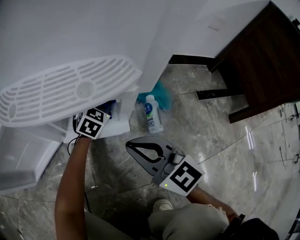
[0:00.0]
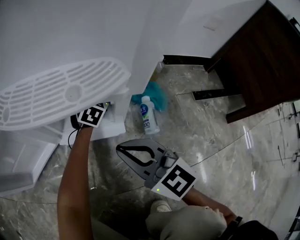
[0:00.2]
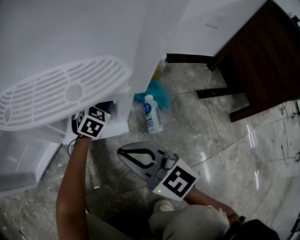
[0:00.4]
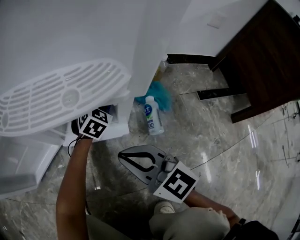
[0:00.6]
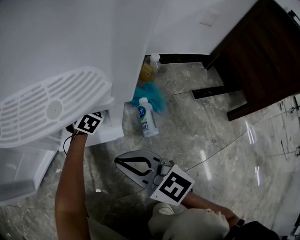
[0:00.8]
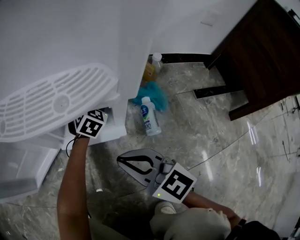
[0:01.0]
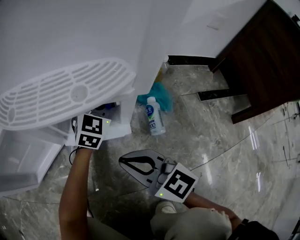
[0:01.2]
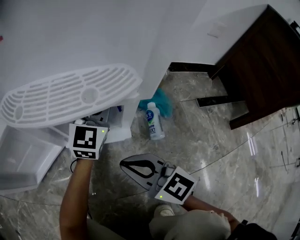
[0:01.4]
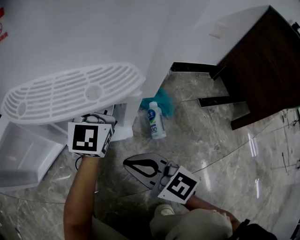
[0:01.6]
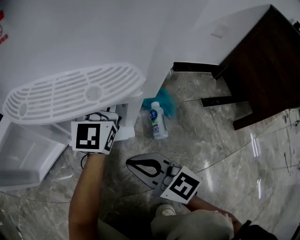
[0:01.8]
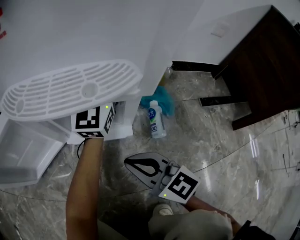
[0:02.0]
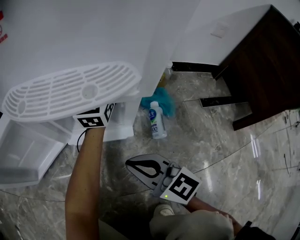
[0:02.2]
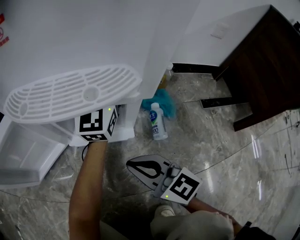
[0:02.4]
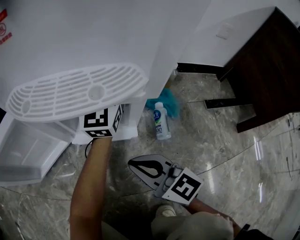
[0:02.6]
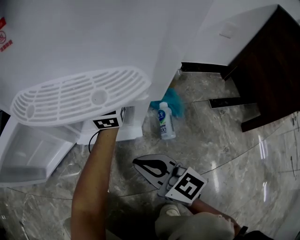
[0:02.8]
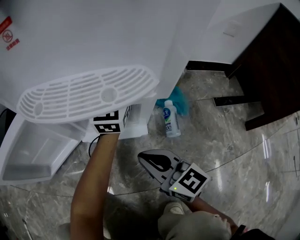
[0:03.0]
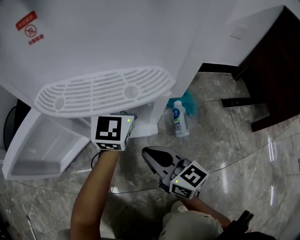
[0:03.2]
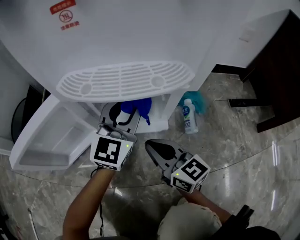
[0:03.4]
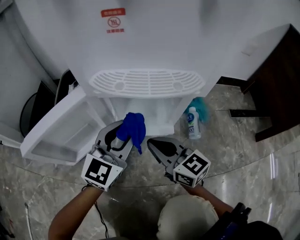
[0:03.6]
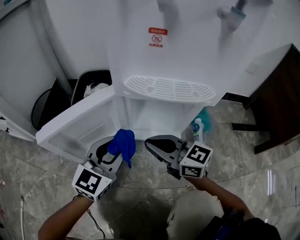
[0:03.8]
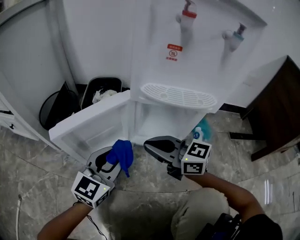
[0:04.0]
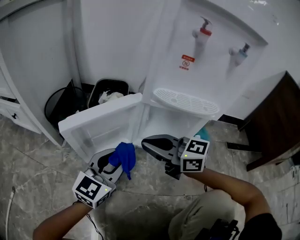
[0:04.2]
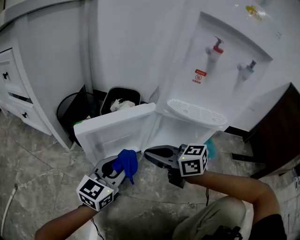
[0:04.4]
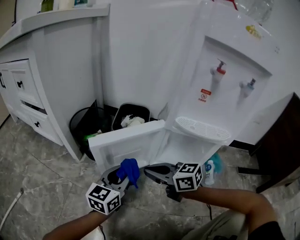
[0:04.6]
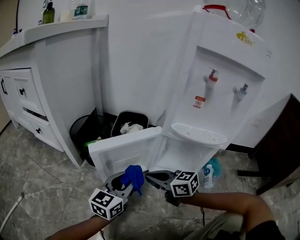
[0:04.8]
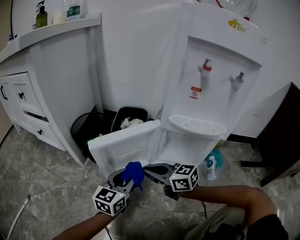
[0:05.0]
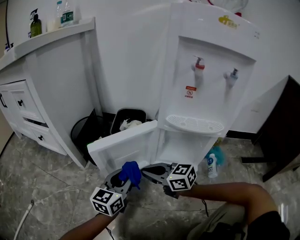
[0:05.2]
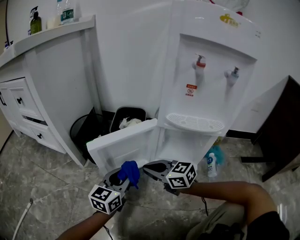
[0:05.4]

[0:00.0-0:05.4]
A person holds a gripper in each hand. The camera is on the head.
0:00.0 to 0:01.4: The left gripper travels upward by roughly 15 cm, and points its fingers approximately 30 degrees further upward.
0:01.4 to 0:02.8: The left gripper goes some 10 cm upward and forward.
0:02.8 to 0:04.0: The right gripper travels to the left and upward by approximately 20 cm, and rotates roughly 20 degrees. Meanwhile the left gripper heads to the left and backward, covering about 40 cm, and rotates roughly 20 degrees.
0:04.0 to 0:05.4: The grippers both shift to the left by about 10 cm.

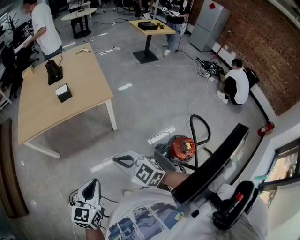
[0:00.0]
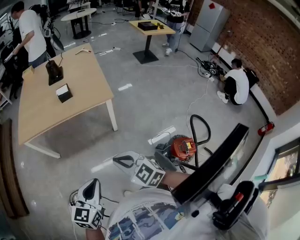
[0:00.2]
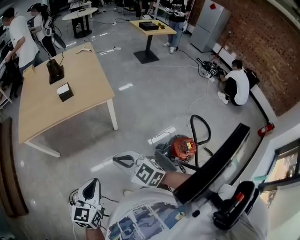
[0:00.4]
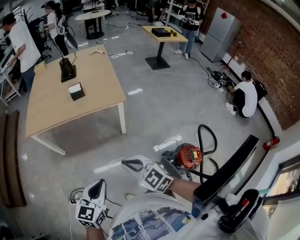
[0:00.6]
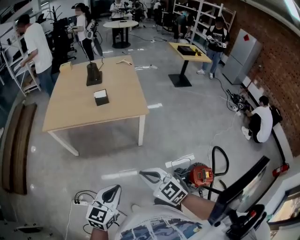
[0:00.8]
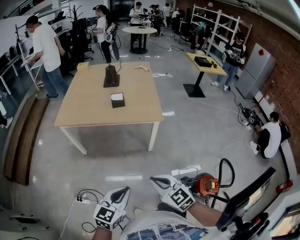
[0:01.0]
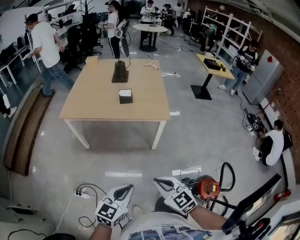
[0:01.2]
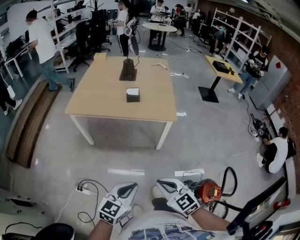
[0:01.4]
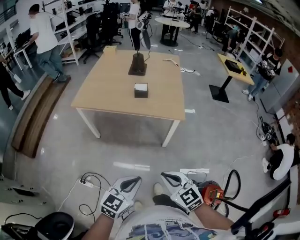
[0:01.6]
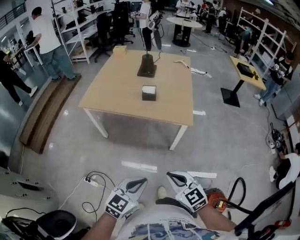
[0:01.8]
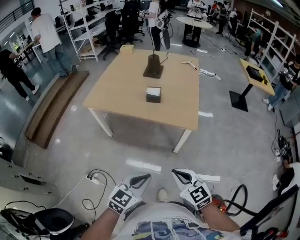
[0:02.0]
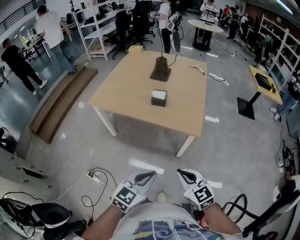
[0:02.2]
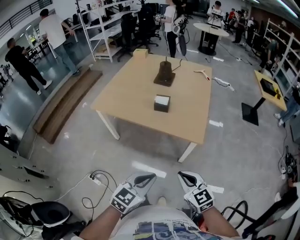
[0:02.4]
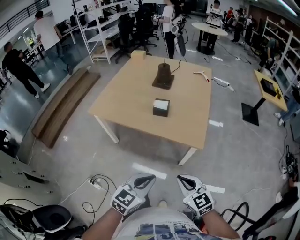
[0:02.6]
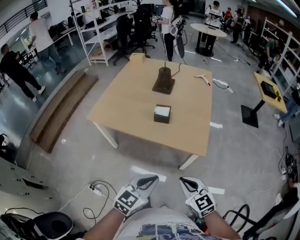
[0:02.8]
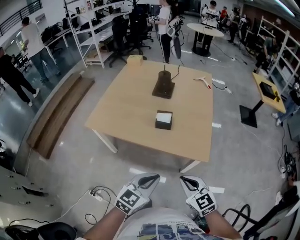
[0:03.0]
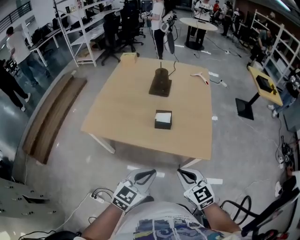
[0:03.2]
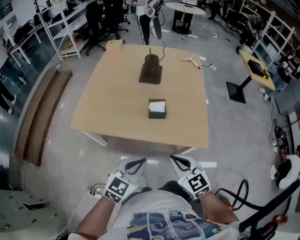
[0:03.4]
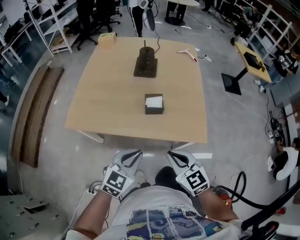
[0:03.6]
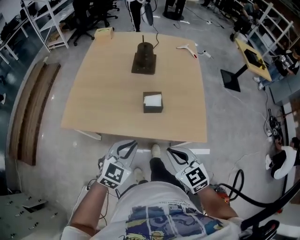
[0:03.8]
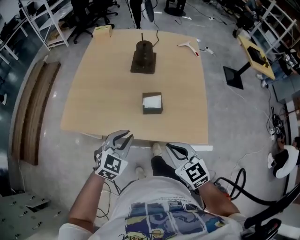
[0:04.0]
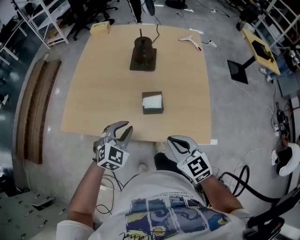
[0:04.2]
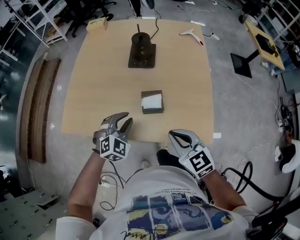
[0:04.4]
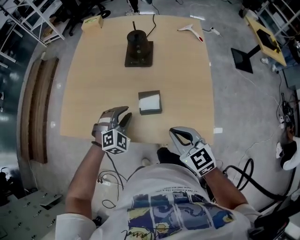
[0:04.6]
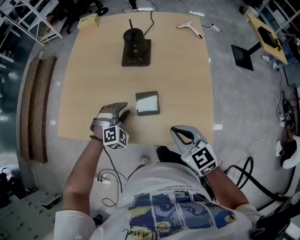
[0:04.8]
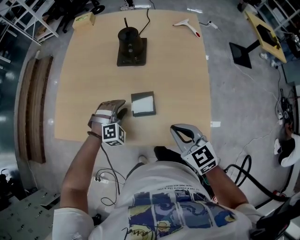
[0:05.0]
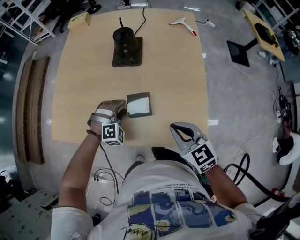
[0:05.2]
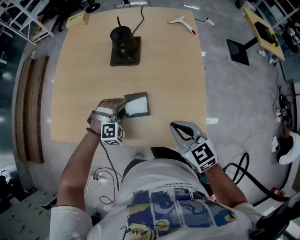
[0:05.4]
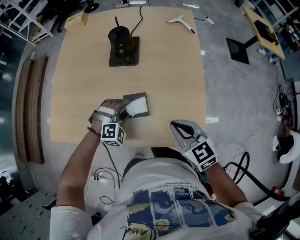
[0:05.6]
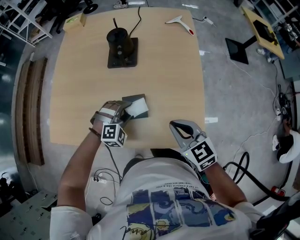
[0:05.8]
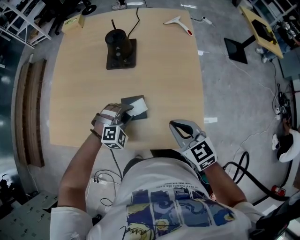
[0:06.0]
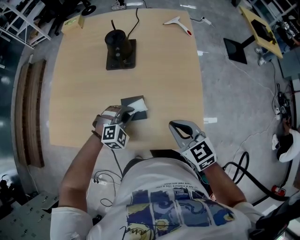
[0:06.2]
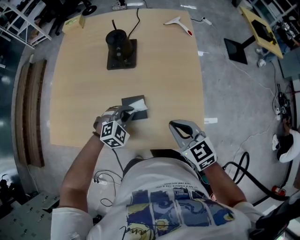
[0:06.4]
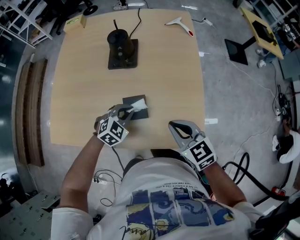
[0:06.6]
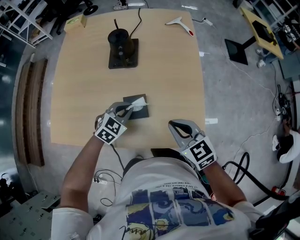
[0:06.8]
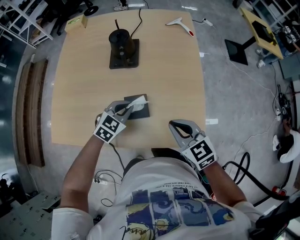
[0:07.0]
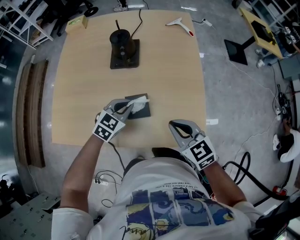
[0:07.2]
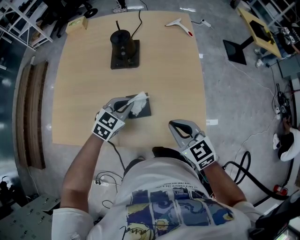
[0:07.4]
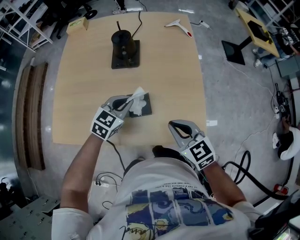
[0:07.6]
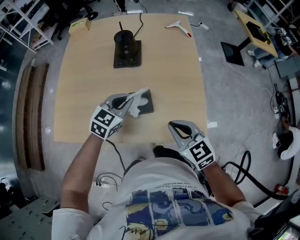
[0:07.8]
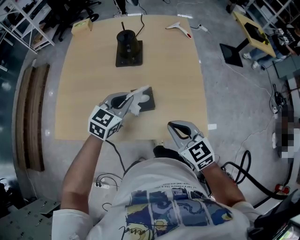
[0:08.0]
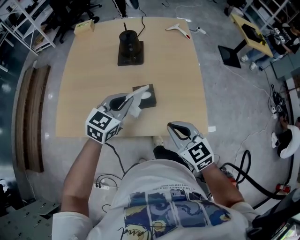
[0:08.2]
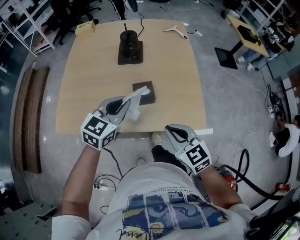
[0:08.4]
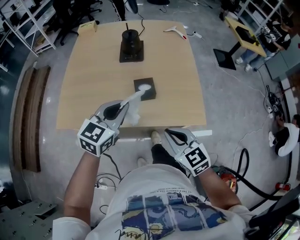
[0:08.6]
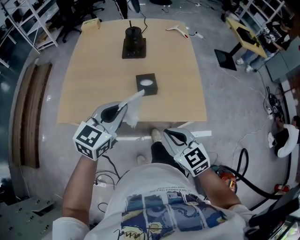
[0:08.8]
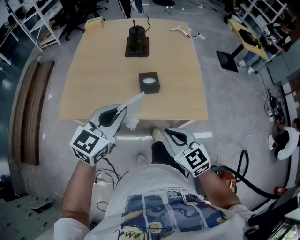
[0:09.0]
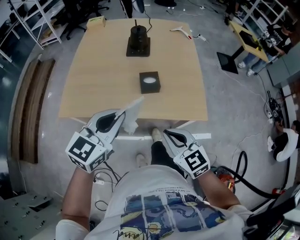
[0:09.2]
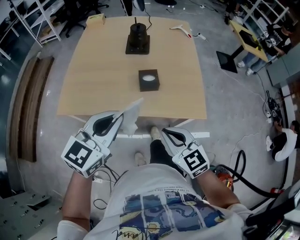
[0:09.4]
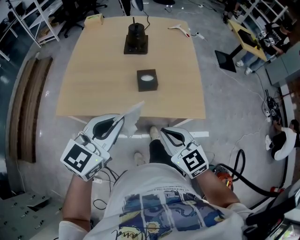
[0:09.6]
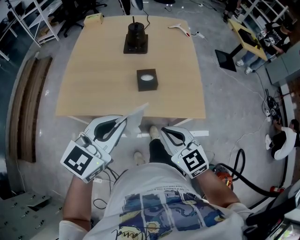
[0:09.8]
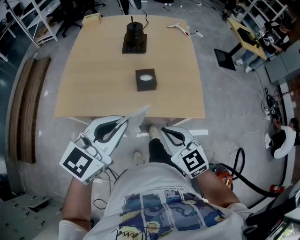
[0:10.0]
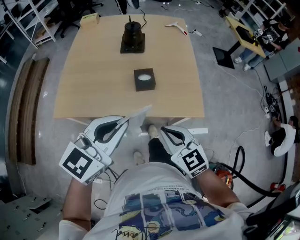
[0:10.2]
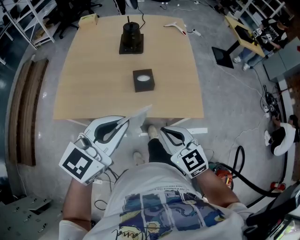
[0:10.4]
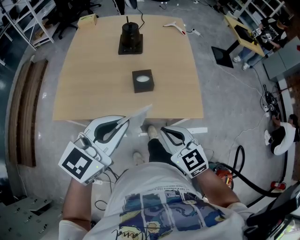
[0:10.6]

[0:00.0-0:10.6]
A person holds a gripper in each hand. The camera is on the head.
0:00.0 to 0:01.6: The grippers make only small movements.
0:01.6 to 0:03.0: The two grippers go some 25 cm forward.
0:03.0 to 0:04.6: Both grippers travel together forward, about 30 cm. The left gripper rolls clockwise, seen from behind, by some 50 degrees, and opens up.
0:04.6 to 0:06.0: The left gripper is displaced to the right and downward by some 10 cm, and turns by about 20 degrees; the right gripper heads to the right and forward, covering approximately 10 cm.
0:06.0 to 0:07.6: The left gripper moves upward, about 10 cm, rolls counterclockwise, seen from behind, by approximately 50 degrees, and closes up.
0:07.6 to 0:09.0: The left gripper goes about 30 cm backward and upward. The right gripper heads backward, covering approximately 20 cm.
0:09.0 to 0:10.6: The left gripper is displaced upward by about 5 cm.

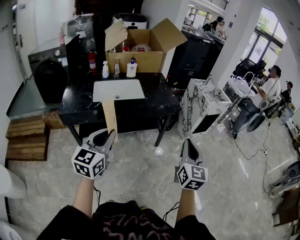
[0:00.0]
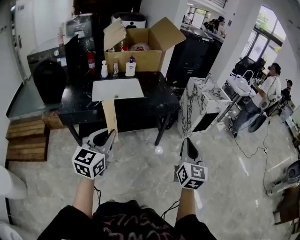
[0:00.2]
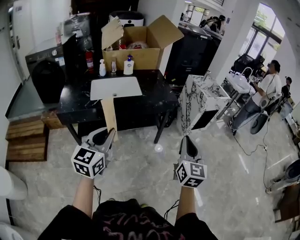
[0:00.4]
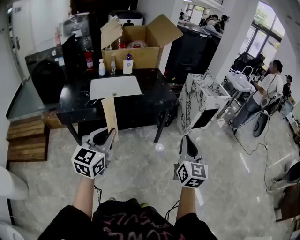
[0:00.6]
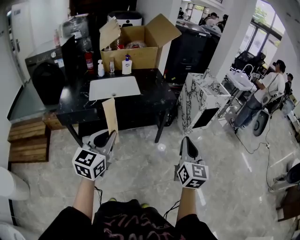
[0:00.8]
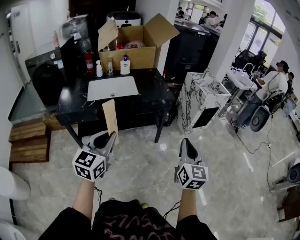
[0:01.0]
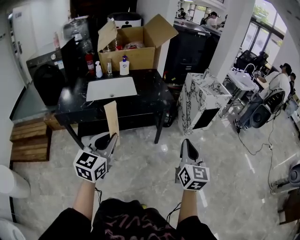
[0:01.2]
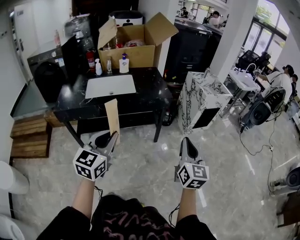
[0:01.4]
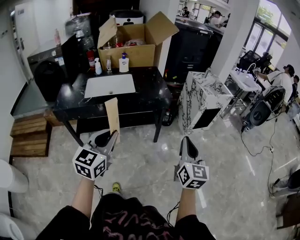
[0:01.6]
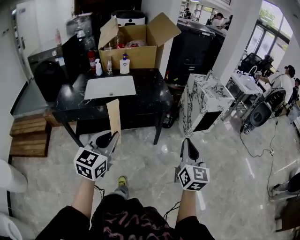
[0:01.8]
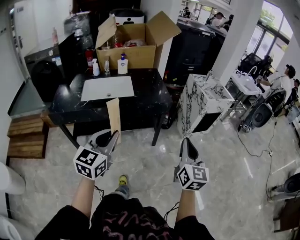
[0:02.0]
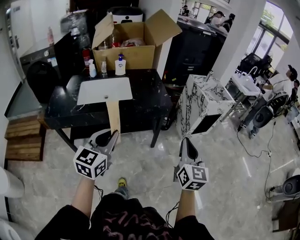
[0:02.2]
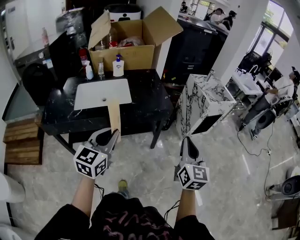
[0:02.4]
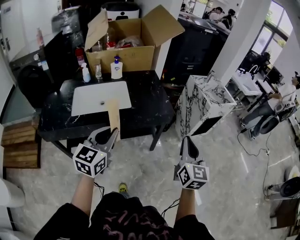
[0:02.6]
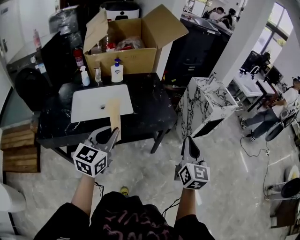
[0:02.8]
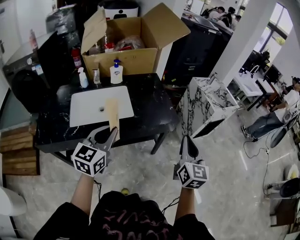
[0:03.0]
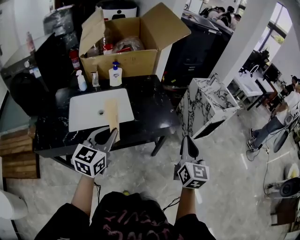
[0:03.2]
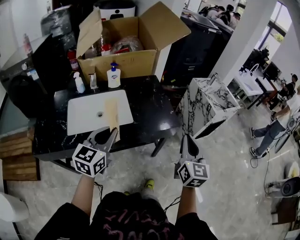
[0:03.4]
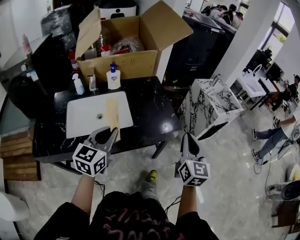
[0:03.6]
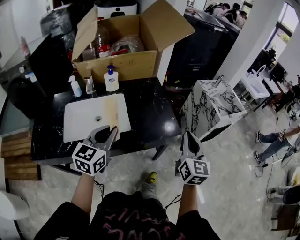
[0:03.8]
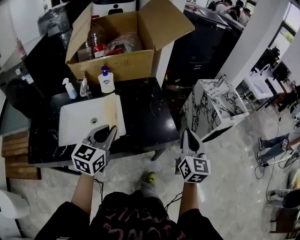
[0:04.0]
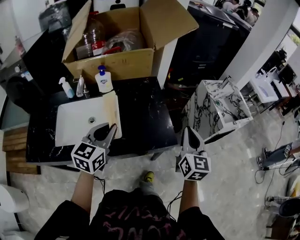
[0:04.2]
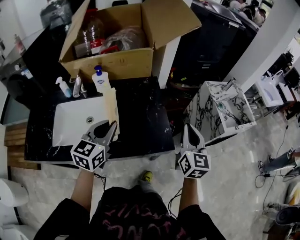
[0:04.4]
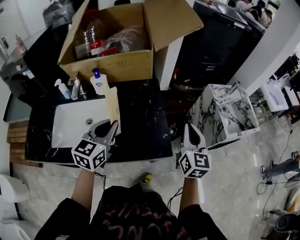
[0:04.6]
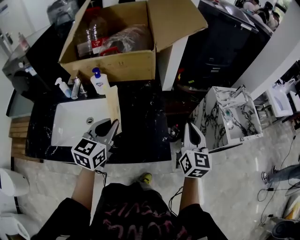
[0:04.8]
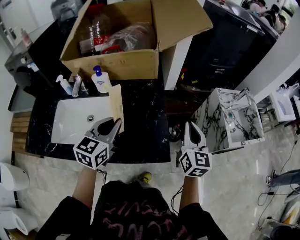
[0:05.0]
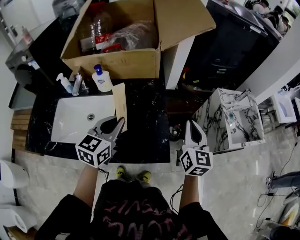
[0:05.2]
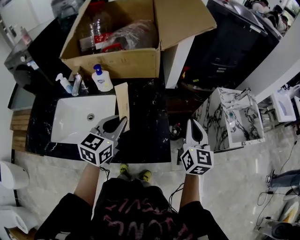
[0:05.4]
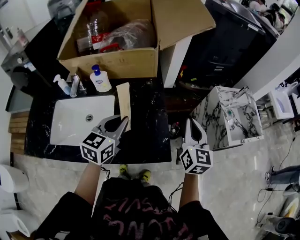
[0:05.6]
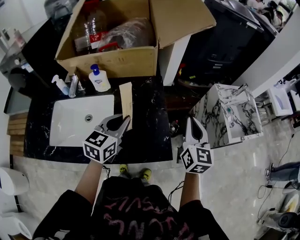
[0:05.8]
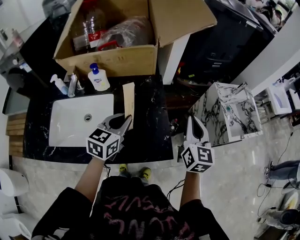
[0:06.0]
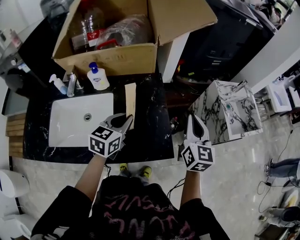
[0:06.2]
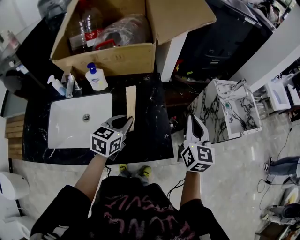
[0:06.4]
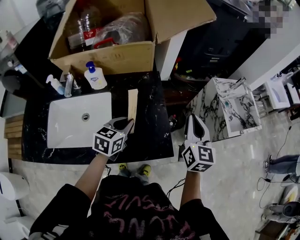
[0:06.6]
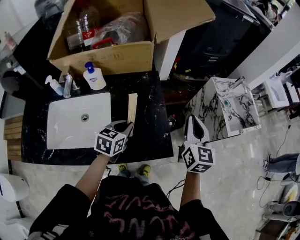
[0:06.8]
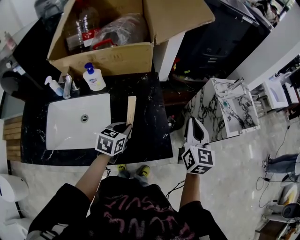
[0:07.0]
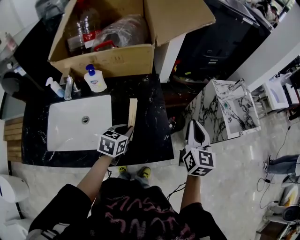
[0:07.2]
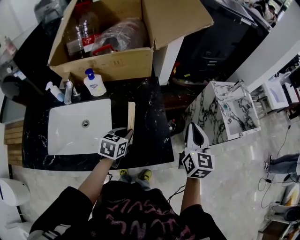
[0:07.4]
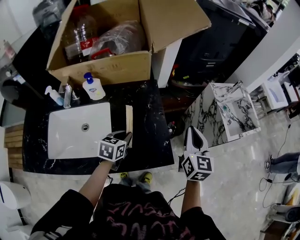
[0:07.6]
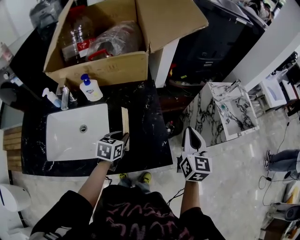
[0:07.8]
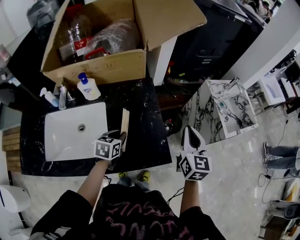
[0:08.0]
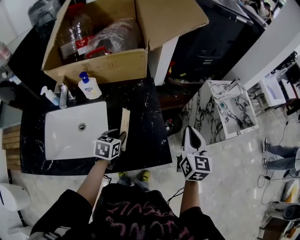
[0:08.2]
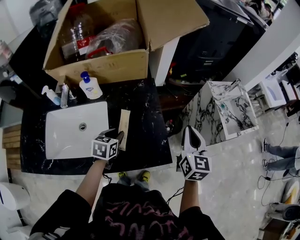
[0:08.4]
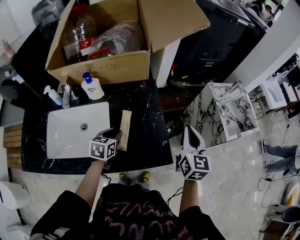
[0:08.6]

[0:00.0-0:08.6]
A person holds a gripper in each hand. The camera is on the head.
0:00.0 to 0:01.4: Both grippers move to the right, some 10 cm.
0:01.4 to 0:02.8: Both grippers move forward, approximately 25 cm.
0:02.8 to 0:04.4: The two grippers go roughly 30 cm forward.
0:04.4 to 0:05.8: The two grippers go about 10 cm forward.
0:05.8 to 0:07.2: The left gripper shifts approximately 15 cm downward, and turns by some 20 degrees.
0:07.2 to 0:08.6: The left gripper shifts roughly 5 cm to the left.
